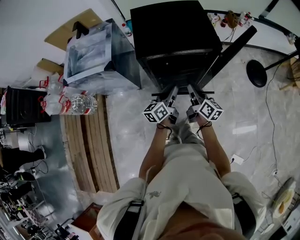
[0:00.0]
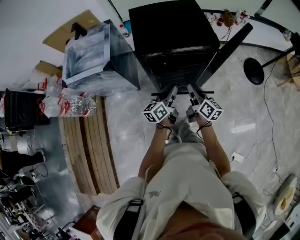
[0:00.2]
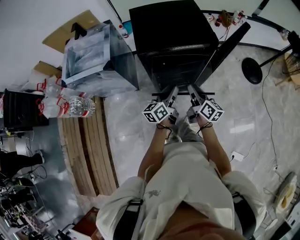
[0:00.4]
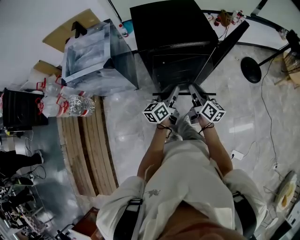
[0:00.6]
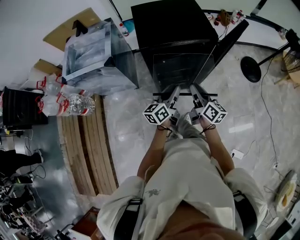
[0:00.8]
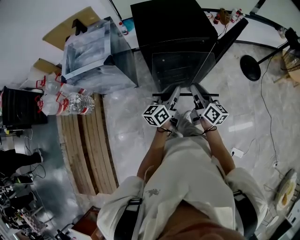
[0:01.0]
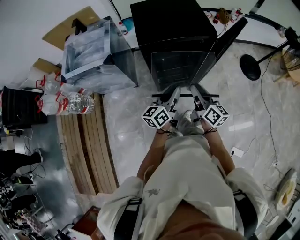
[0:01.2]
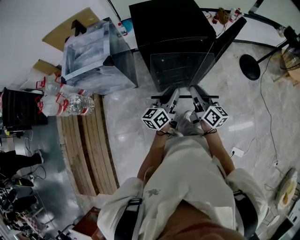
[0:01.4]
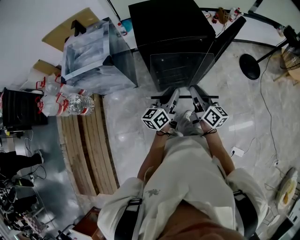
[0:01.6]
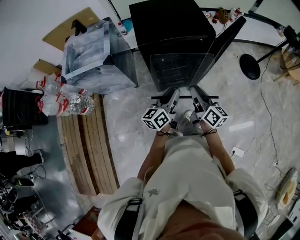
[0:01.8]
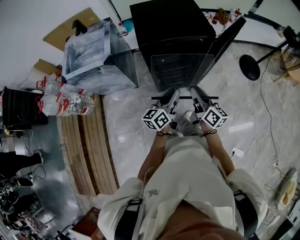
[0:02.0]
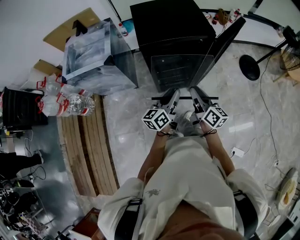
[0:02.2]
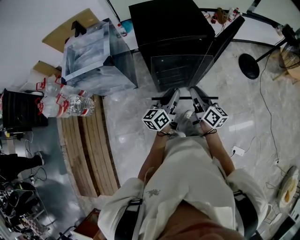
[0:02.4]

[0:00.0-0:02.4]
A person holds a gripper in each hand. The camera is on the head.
0:00.0 to 0:01.2: The two grippers go approximately 10 cm backward and upward.
0:01.2 to 0:02.4: The grippers move only a little.

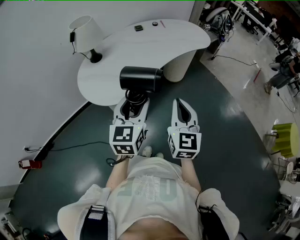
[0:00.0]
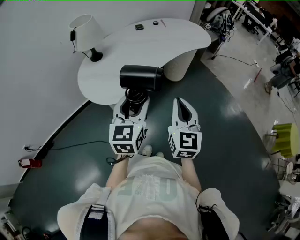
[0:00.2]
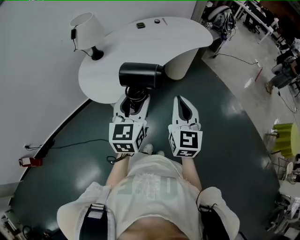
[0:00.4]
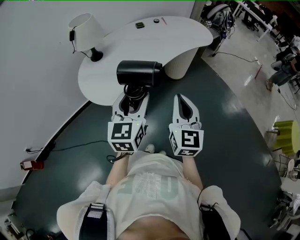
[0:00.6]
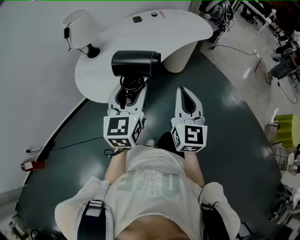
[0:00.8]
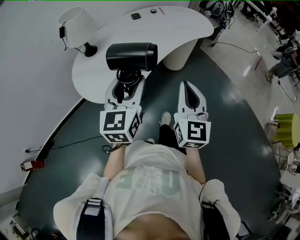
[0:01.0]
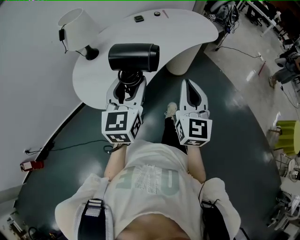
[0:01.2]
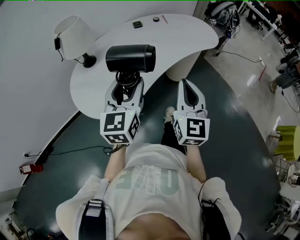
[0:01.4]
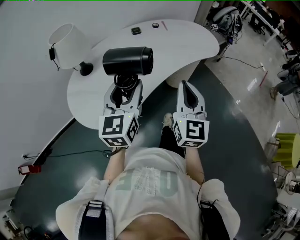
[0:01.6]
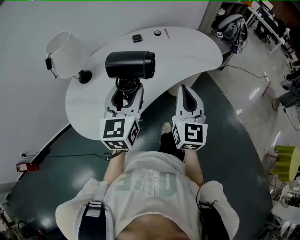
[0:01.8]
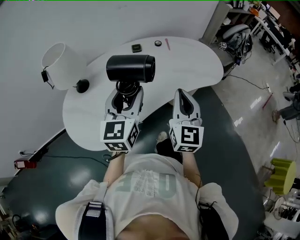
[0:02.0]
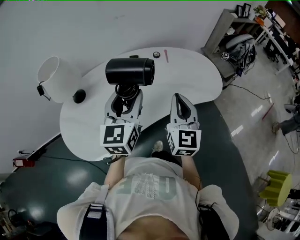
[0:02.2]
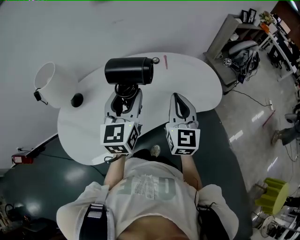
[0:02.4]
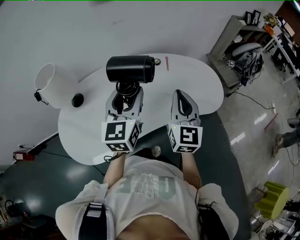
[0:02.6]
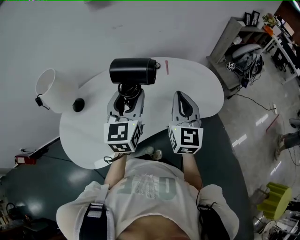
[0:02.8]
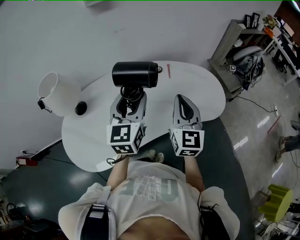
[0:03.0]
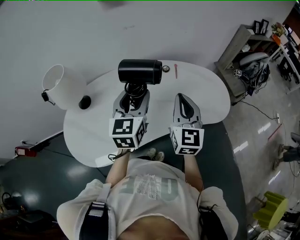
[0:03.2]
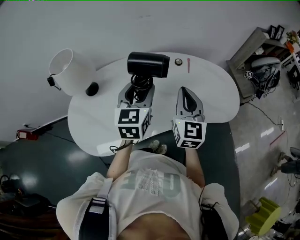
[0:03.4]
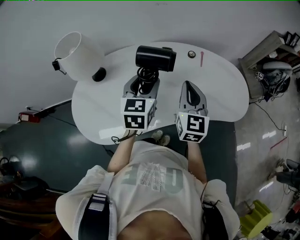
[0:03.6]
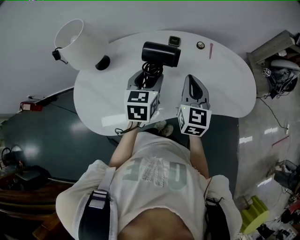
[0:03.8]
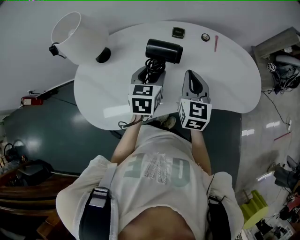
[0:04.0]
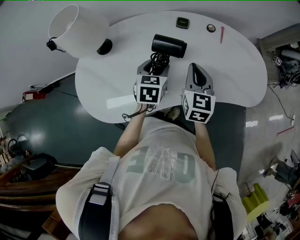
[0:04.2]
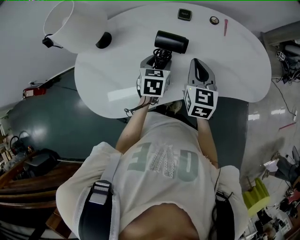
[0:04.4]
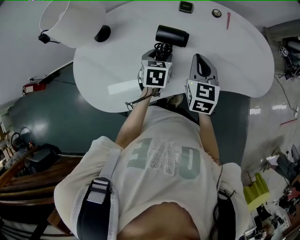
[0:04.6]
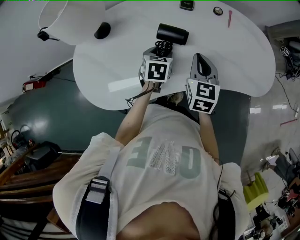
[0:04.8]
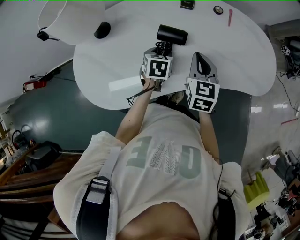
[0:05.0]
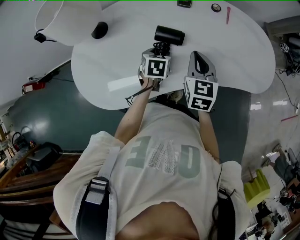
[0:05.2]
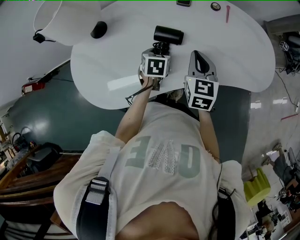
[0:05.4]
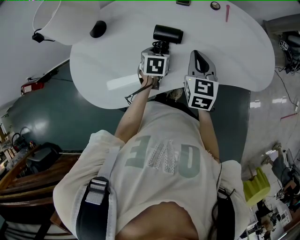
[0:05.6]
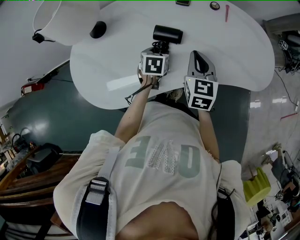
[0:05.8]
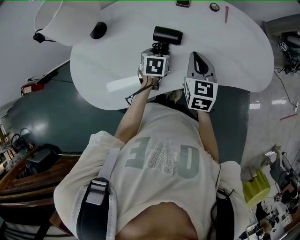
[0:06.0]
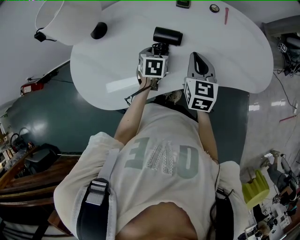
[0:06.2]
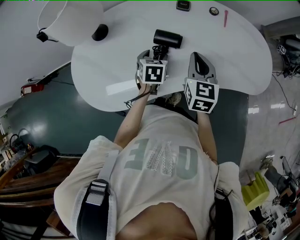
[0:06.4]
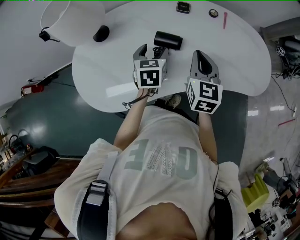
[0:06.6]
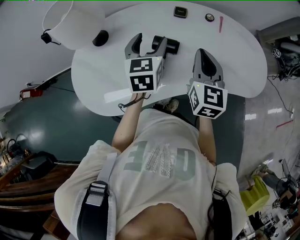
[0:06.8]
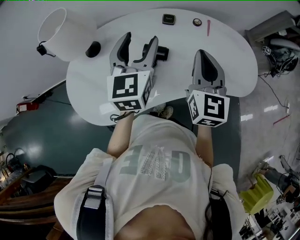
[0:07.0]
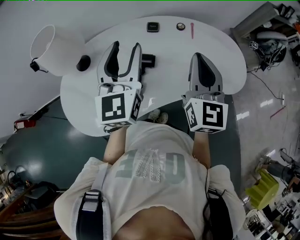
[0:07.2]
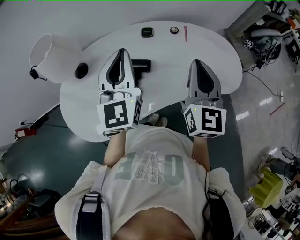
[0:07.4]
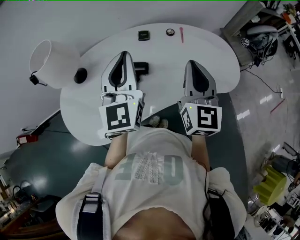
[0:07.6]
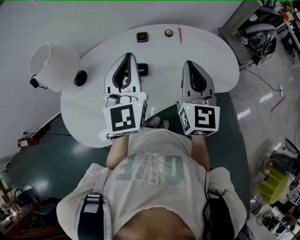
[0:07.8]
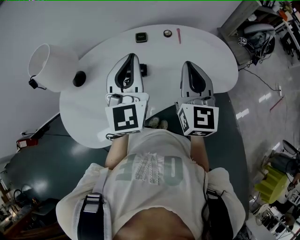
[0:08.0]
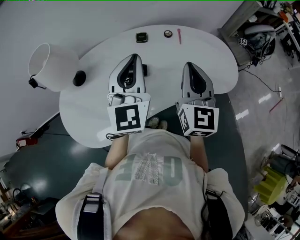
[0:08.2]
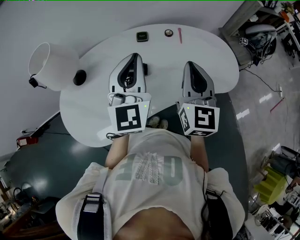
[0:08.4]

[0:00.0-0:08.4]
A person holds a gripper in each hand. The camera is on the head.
0:00.0 to 0:01.4: Both grippers move forward, some 15 cm.
0:01.4 to 0:02.8: The left gripper is displaced forward and to the right by some 35 cm. The right gripper moves forward, some 35 cm.
0:02.8 to 0:04.2: The right gripper moves downward, to the left and forward, about 20 cm, and turns by some 20 degrees. The left gripper goes approximately 25 cm downward and to the left, and points its fingers roughly 30 degrees further downward.
0:04.2 to 0:05.6: The left gripper is displaced downward by roughly 15 cm. Meanwhile the right gripper shifts roughly 5 cm downward.
0:05.6 to 0:07.0: The left gripper shifts about 30 cm upward, and points its fingers roughly 50 degrees further upward; the right gripper goes approximately 15 cm upward, and rotates about 20 degrees.
0:07.0 to 0:08.4: The left gripper shifts about 10 cm to the right and upward, and closes. Meanwhile the right gripper is displaced to the right by about 5 cm.

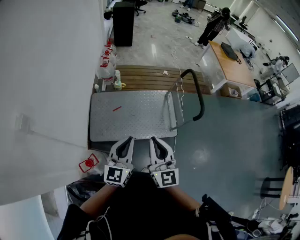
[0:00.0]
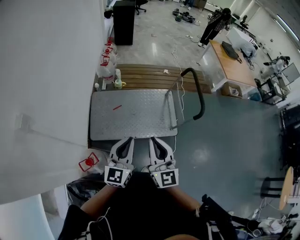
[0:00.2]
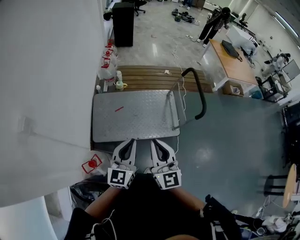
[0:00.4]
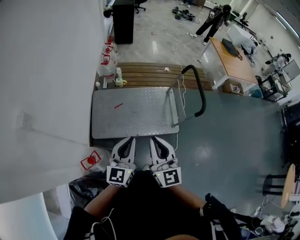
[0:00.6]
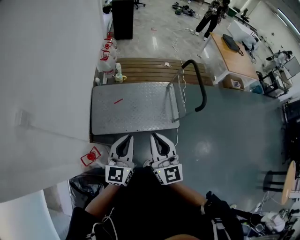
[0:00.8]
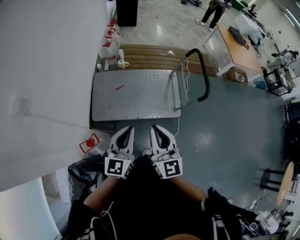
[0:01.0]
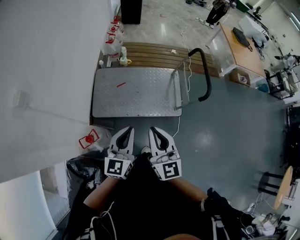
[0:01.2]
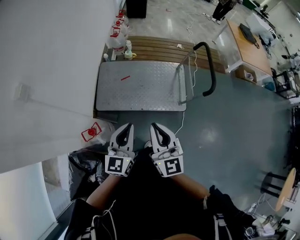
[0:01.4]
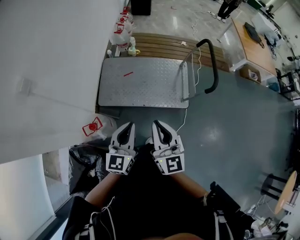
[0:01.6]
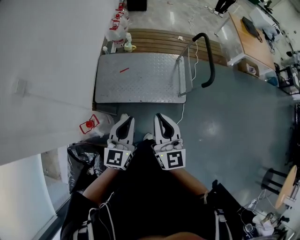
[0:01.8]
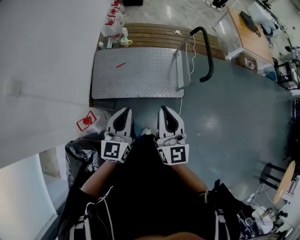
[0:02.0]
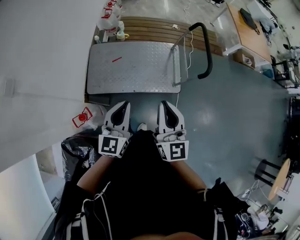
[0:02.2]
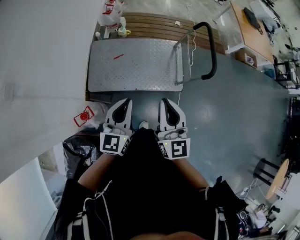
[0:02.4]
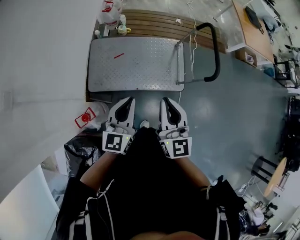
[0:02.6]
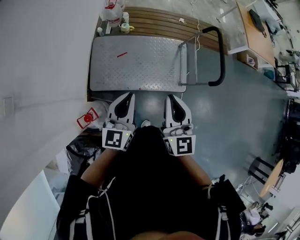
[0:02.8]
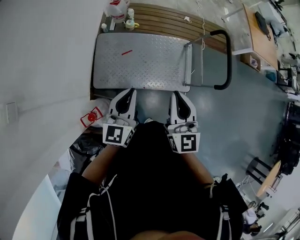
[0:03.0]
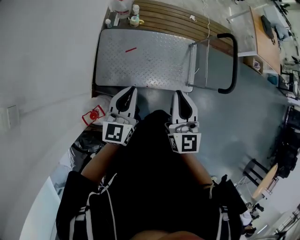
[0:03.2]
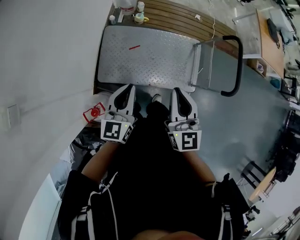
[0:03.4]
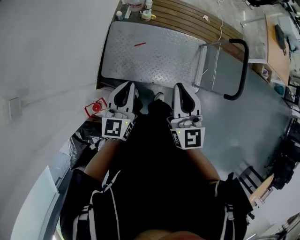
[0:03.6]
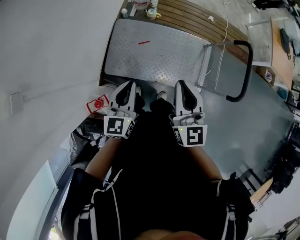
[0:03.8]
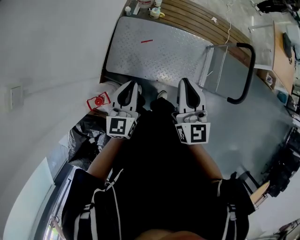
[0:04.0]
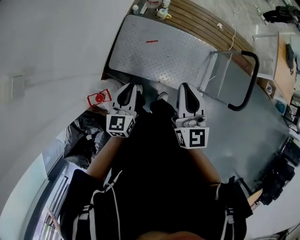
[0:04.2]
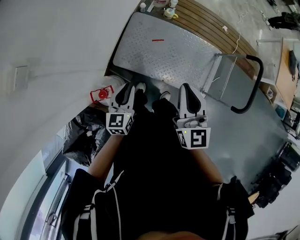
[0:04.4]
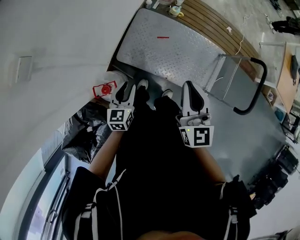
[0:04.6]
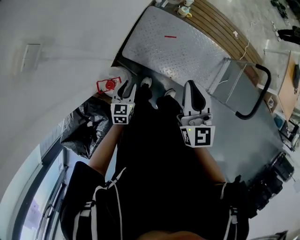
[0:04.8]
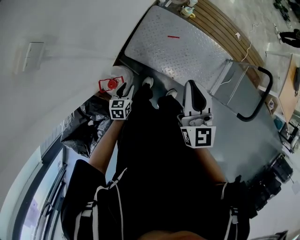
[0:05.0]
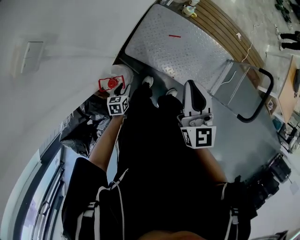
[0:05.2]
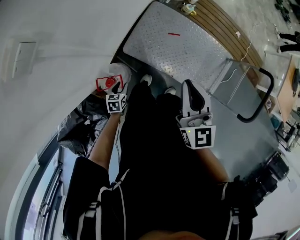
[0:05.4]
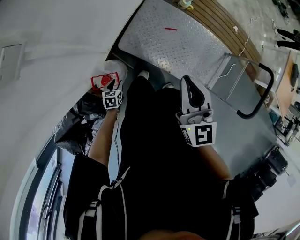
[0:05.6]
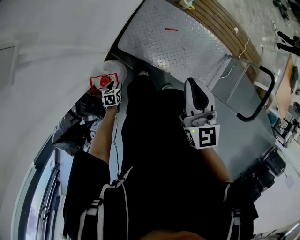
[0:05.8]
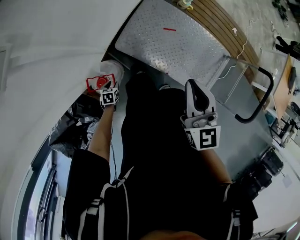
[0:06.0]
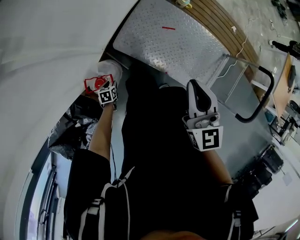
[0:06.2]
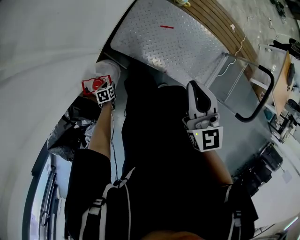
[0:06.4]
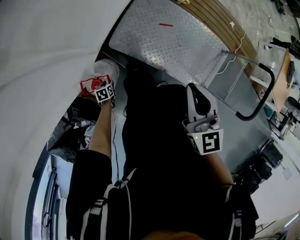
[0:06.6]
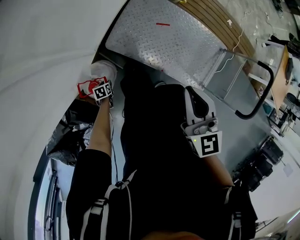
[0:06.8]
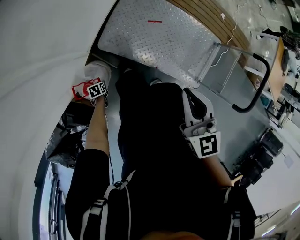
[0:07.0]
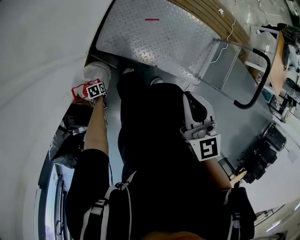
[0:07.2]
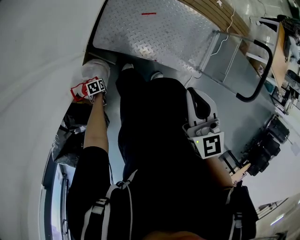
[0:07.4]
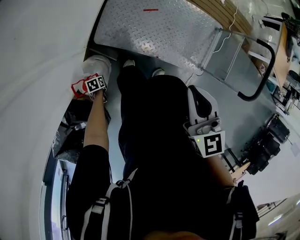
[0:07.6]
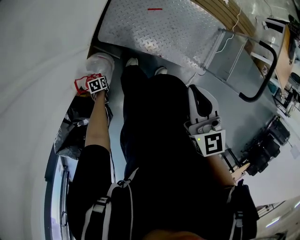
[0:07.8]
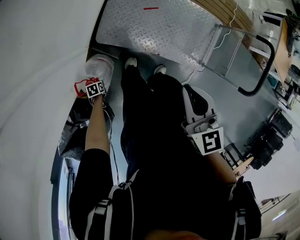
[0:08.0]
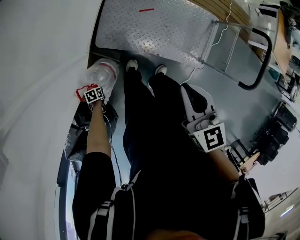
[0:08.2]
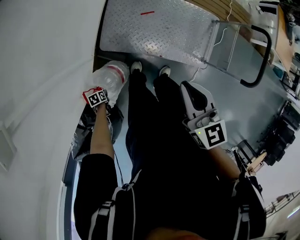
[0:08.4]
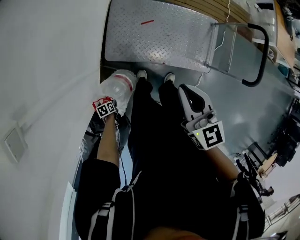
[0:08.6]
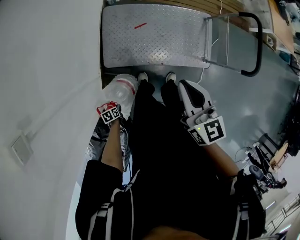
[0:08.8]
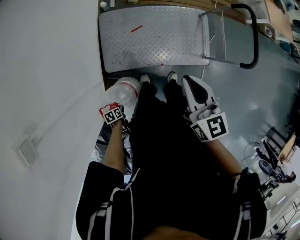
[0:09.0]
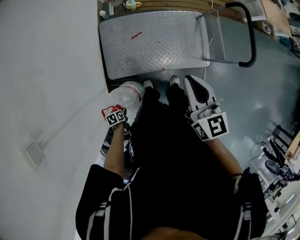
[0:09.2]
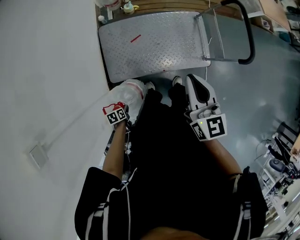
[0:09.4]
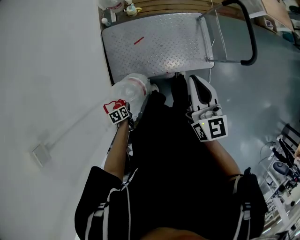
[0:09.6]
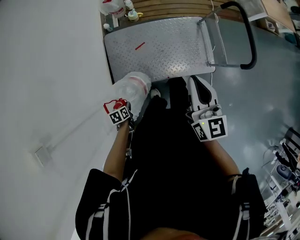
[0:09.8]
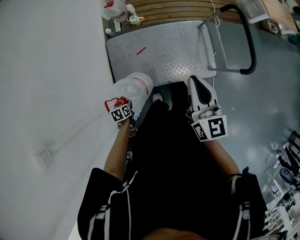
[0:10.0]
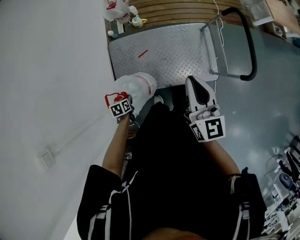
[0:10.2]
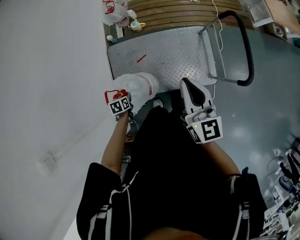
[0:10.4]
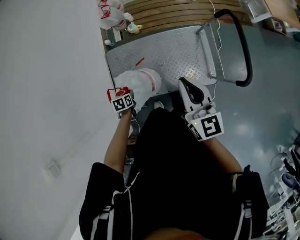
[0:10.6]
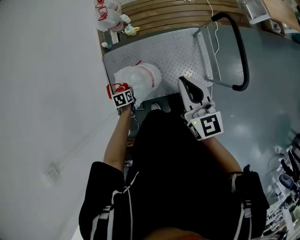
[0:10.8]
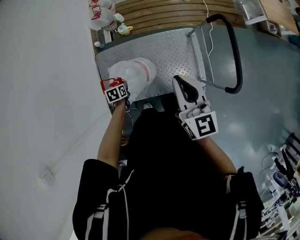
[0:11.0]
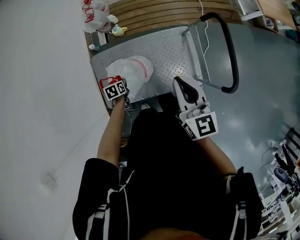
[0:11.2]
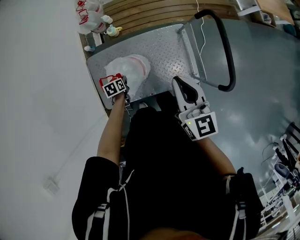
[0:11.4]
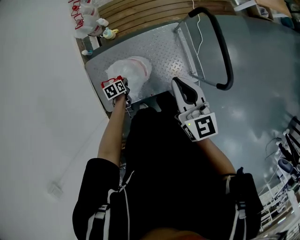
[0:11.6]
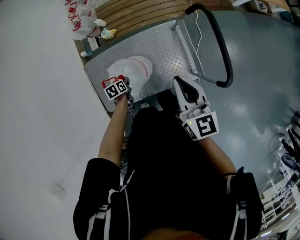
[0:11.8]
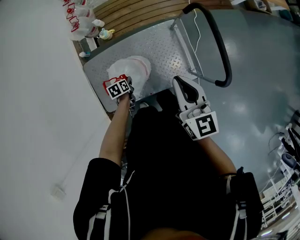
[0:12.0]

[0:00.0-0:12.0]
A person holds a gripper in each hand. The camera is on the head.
0:00.0 to 0:01.6: Both grippers travel together backward, approximately 10 cm.
0:01.6 to 0:03.0: The left gripper shifts approximately 25 cm forward and to the left, while the right gripper is displaced forward by roughly 20 cm.
0:03.0 to 0:04.4: The left gripper heads downward and to the left, covering about 20 cm, and swivels roughly 30 degrees; the right gripper heads to the left and forward, covering roughly 10 cm, and changes its angle by approximately 20 degrees.
0:04.4 to 0:06.0: The left gripper travels downward and to the left by roughly 40 cm, points its fingers approximately 40 degrees further downward, and opens up; the right gripper goes roughly 15 cm to the left and downward.
0:06.0 to 0:07.6: The right gripper moves approximately 5 cm. Meanwhile the left gripper heads downward, covering approximately 10 cm, and closes up.
0:07.6 to 0:09.0: The left gripper is displaced upward by about 15 cm. The right gripper goes about 10 cm upward, and turns by approximately 20 degrees.
0:09.0 to 0:10.4: The right gripper shifts some 20 cm forward and to the right; the left gripper goes roughly 35 cm forward and upward, and turns by about 20 degrees.
0:10.4 to 0:12.0: The left gripper shifts about 25 cm forward and to the right; the right gripper is displaced to the right, forward and downward by some 20 cm.
